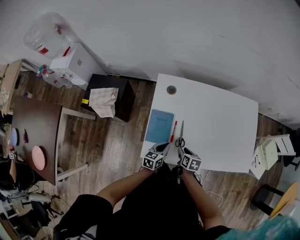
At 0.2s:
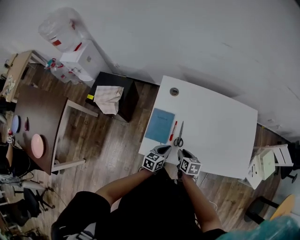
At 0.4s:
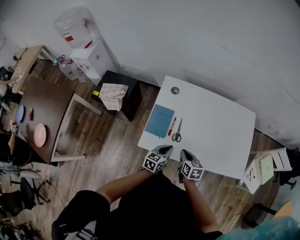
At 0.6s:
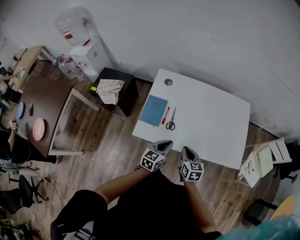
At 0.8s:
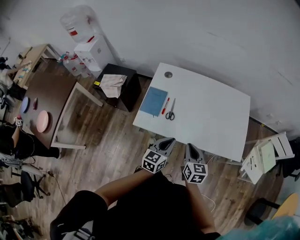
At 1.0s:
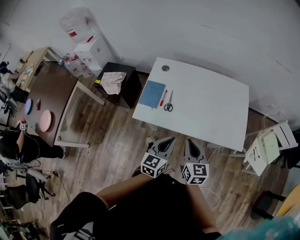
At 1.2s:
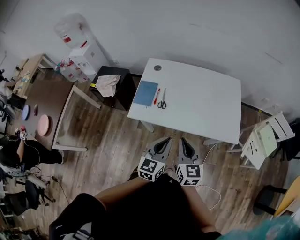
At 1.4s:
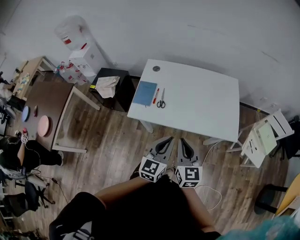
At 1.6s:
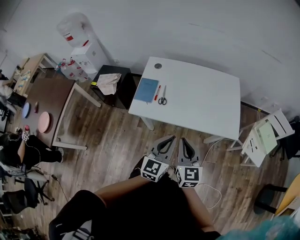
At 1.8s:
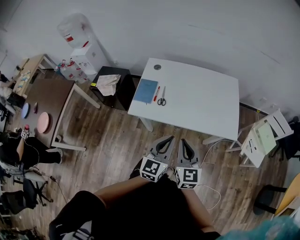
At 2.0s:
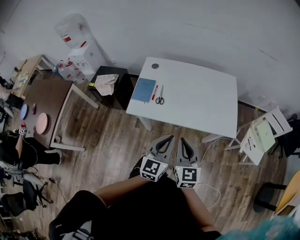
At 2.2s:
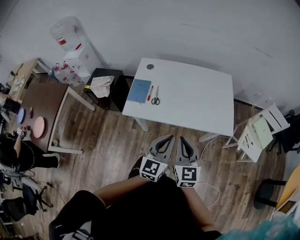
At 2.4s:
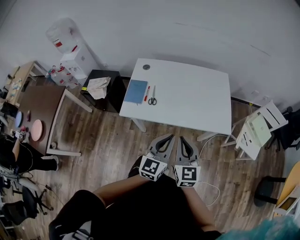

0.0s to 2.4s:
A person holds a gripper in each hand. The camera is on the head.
0.0s to 1.2s: Both grippers move upward, backward and to the right, some 40 cm. The left gripper rotates approximately 30 degrees, while the right gripper tilts its fingers some 40 degrees upward, and closes up.
1.2s to 2.4s: The right gripper shifts by approximately 5 cm; the left gripper travels to the right by some 5 cm.

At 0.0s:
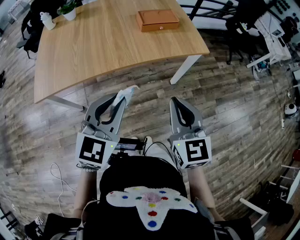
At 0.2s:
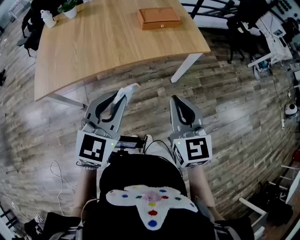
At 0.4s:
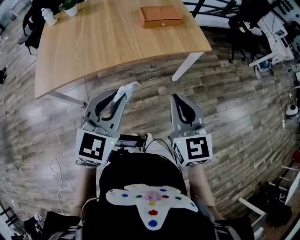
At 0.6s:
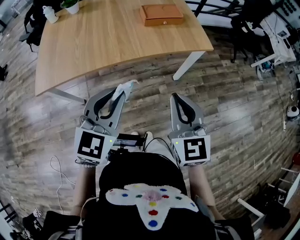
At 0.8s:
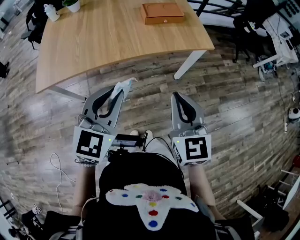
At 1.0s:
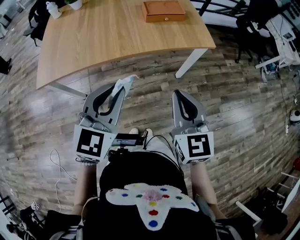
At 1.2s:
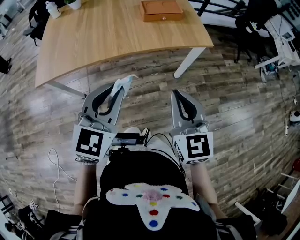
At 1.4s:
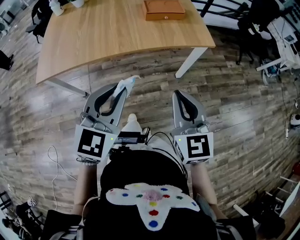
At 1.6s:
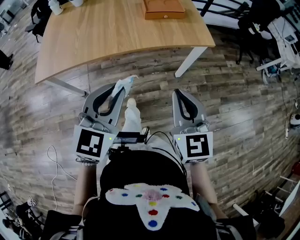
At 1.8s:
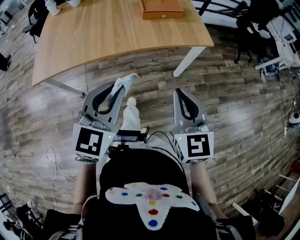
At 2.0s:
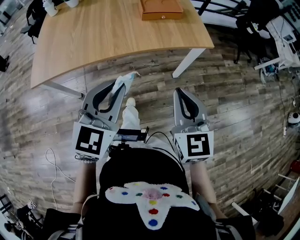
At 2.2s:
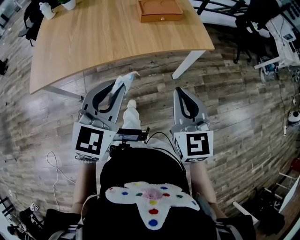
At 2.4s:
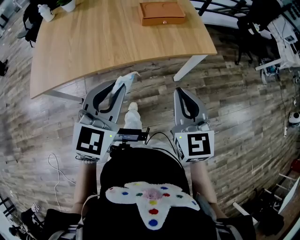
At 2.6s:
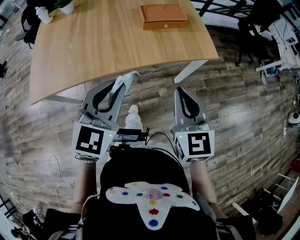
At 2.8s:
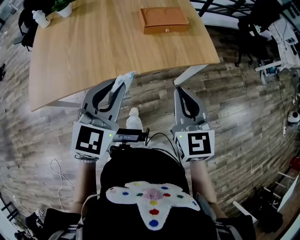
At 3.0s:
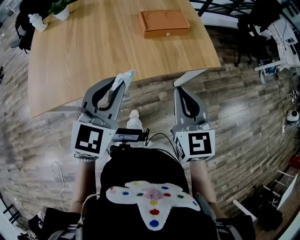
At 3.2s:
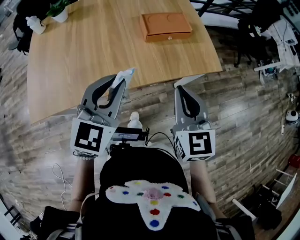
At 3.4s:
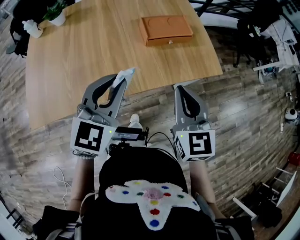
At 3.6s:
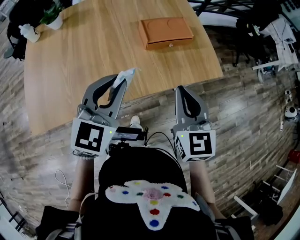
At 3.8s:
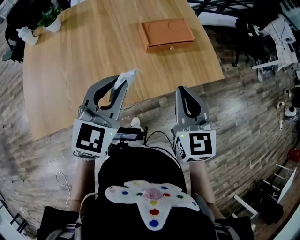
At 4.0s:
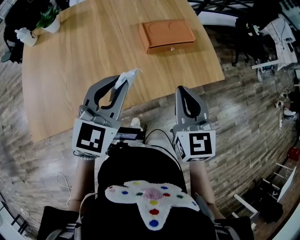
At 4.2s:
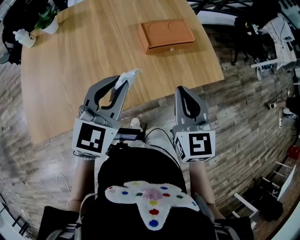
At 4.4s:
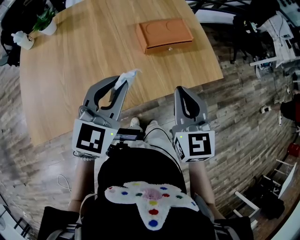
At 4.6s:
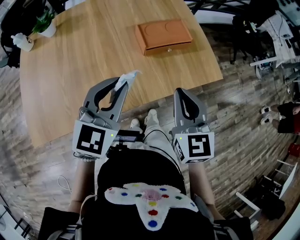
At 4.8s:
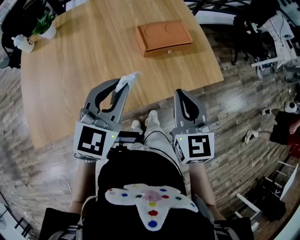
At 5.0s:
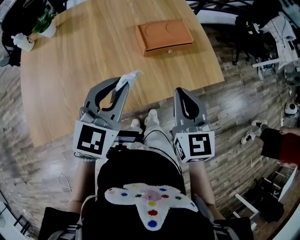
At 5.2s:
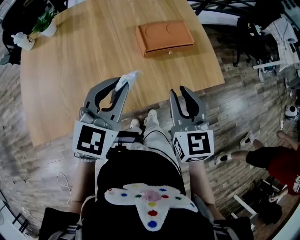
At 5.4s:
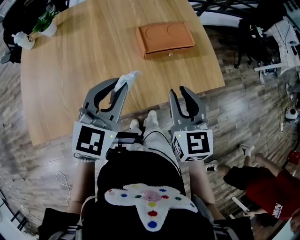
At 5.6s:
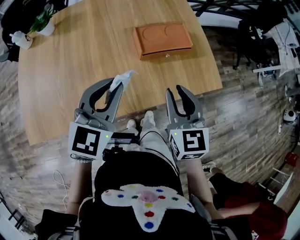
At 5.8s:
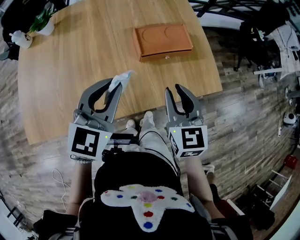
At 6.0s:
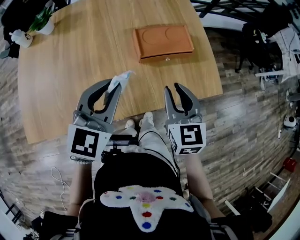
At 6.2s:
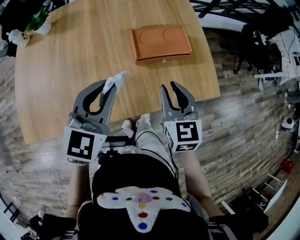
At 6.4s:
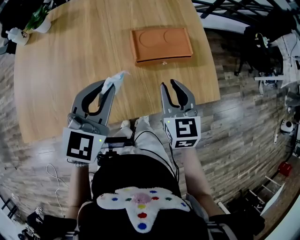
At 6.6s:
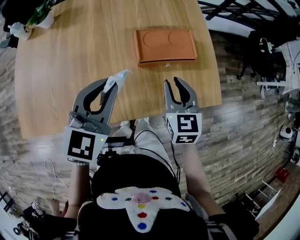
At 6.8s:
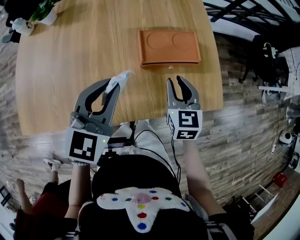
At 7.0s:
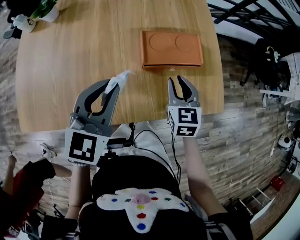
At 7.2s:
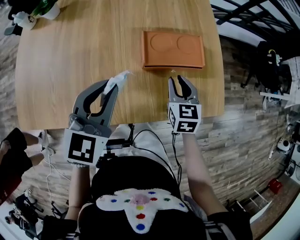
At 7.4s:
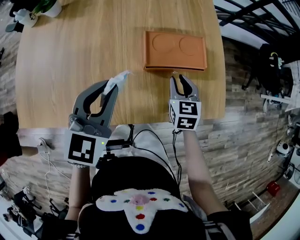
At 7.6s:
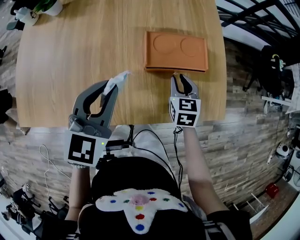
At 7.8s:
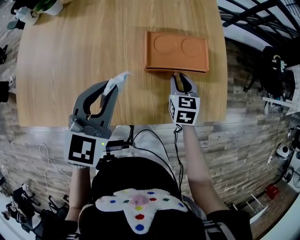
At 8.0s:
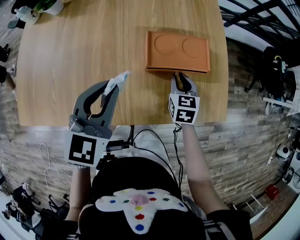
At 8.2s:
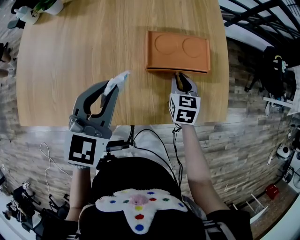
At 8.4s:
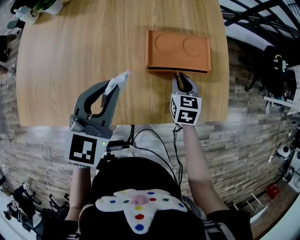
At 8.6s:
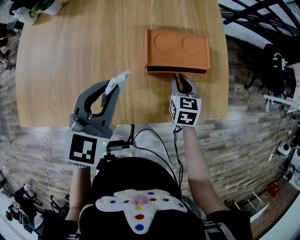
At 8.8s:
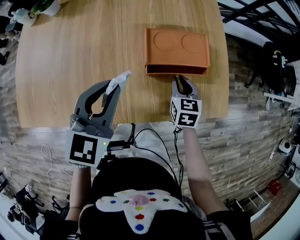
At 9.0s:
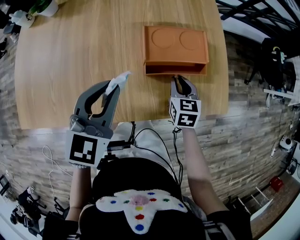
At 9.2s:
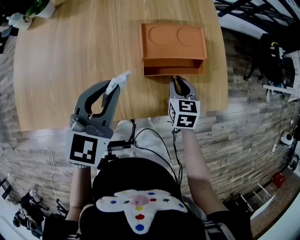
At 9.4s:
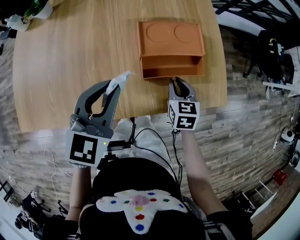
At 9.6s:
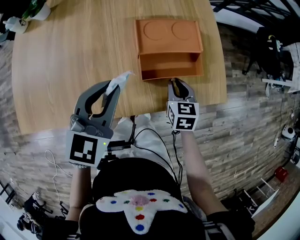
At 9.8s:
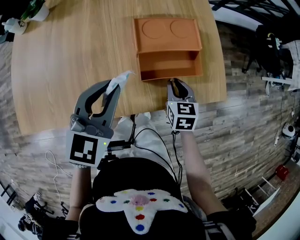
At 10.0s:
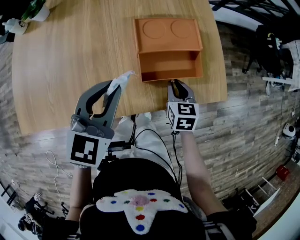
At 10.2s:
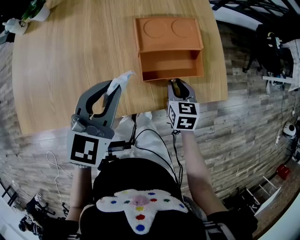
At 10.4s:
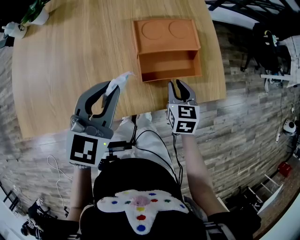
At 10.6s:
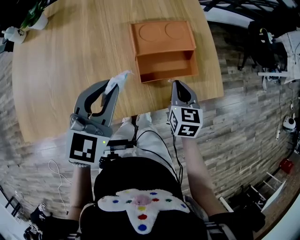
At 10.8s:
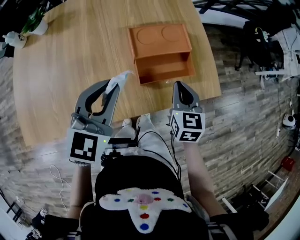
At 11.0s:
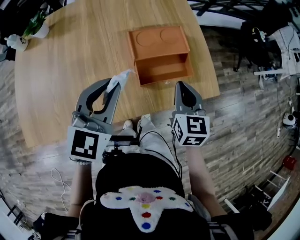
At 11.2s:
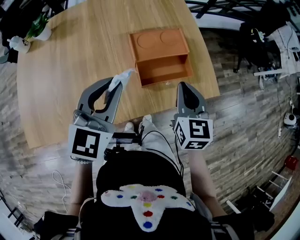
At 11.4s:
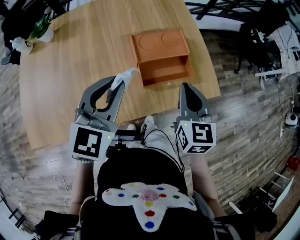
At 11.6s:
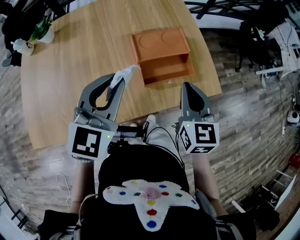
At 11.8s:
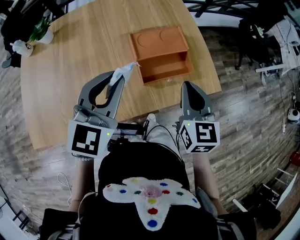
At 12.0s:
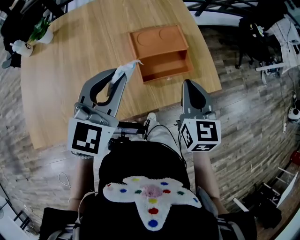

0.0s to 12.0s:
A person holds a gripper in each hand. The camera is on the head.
0.0s to 1.6s: The grippers both shift to the right by some 5 cm.
1.6s to 3.0s: Both grippers travel together forward, roughly 20 cm.
3.0s to 4.4s: The right gripper shifts some 15 cm forward and to the left; the left gripper moves forward, about 15 cm.
4.4s to 6.0s: The left gripper goes about 5 cm forward. Meanwhile the right gripper is displaced forward and downward by some 10 cm, and opens up.
6.0s to 7.6s: The right gripper shifts about 20 cm downward and forward. The left gripper goes about 5 cm forward.
7.6s to 9.0s: The grippers stay close to where they were, moving slightly.
9.0s to 10.4s: The right gripper moves backward, approximately 5 cm.
10.4s to 12.0s: The right gripper goes approximately 20 cm upward, turns by about 20 degrees, and closes its fingers. The left gripper travels upward by about 10 cm.

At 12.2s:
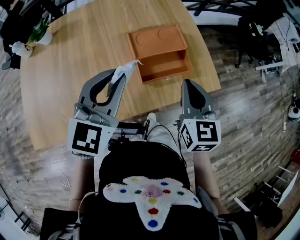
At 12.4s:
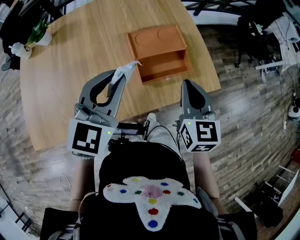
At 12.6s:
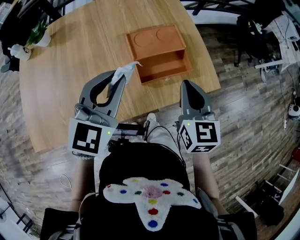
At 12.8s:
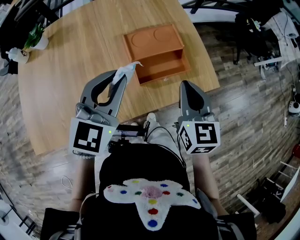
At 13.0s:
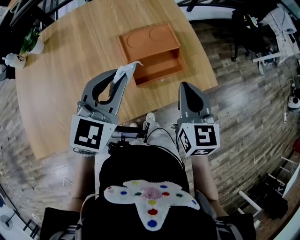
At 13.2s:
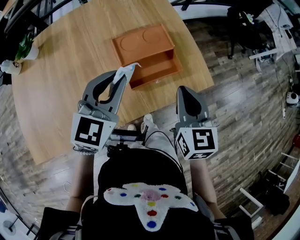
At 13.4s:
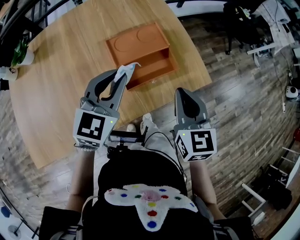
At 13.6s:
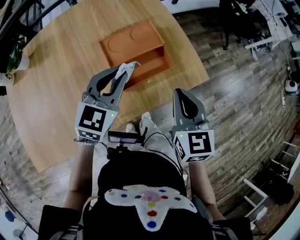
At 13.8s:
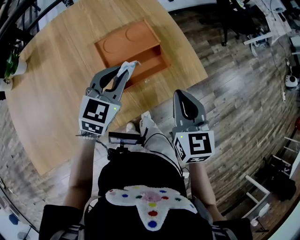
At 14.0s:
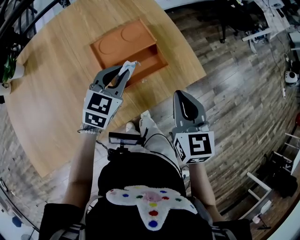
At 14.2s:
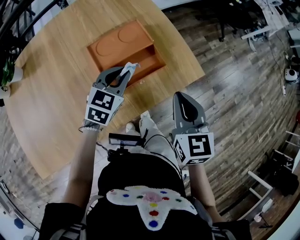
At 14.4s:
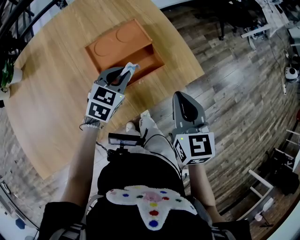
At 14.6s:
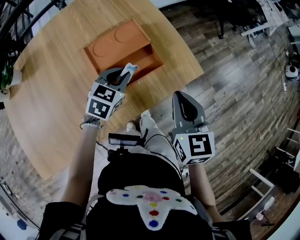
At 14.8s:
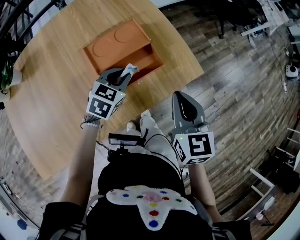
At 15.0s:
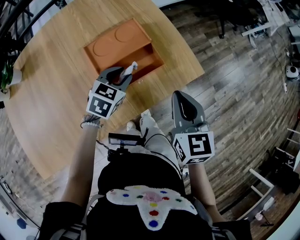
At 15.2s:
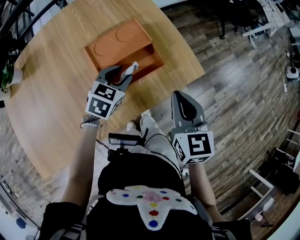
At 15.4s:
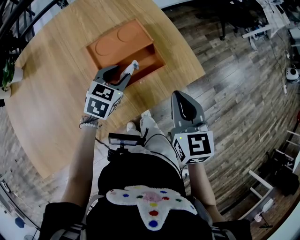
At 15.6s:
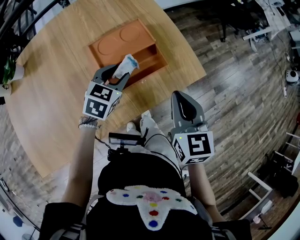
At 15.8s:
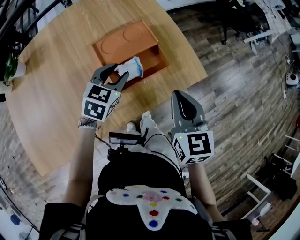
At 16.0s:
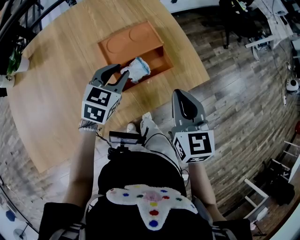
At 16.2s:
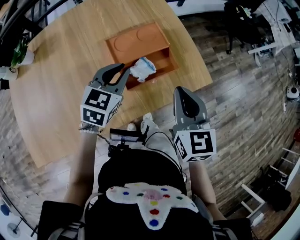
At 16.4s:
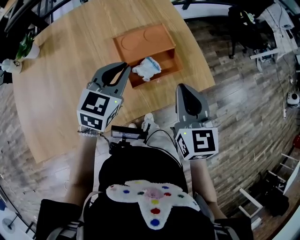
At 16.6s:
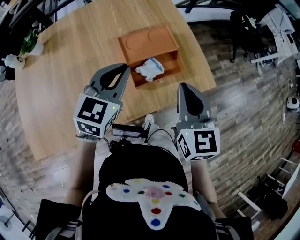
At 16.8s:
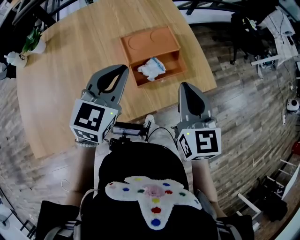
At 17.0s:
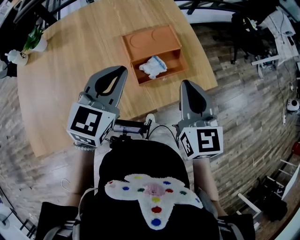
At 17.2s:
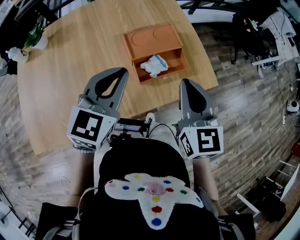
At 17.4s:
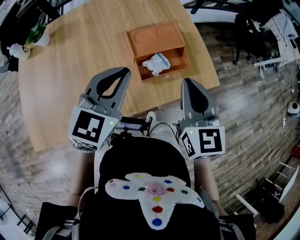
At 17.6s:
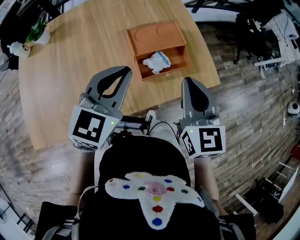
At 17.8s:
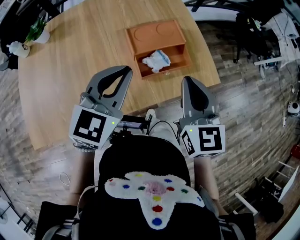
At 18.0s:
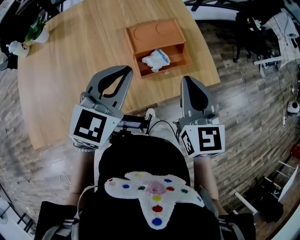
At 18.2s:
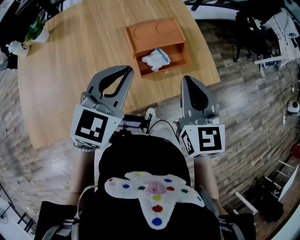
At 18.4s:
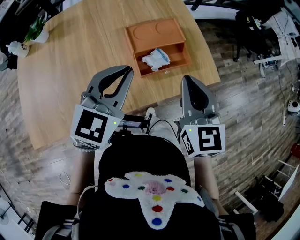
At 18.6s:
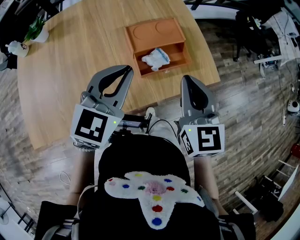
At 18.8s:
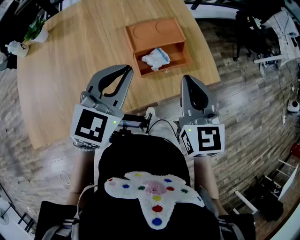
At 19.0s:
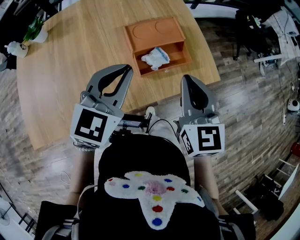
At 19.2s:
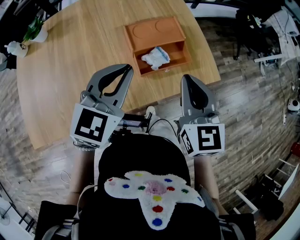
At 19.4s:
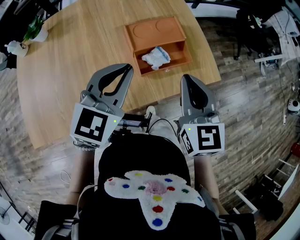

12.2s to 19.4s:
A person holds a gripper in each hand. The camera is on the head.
12.2s to 13.6s: The right gripper shifts by some 5 cm; the left gripper moves downward, forward and to the right, roughly 15 cm.
13.6s to 15.0s: The left gripper moves downward, some 15 cm, and turns by about 30 degrees.
15.0s to 16.6s: The left gripper goes about 20 cm upward and to the left, swivels roughly 30 degrees, and closes up. Meanwhile the right gripper goes roughly 10 cm to the left and upward.
16.6s to 18.0s: The left gripper shifts roughly 5 cm backward.
18.0s to 19.4s: Both grippers stay put.

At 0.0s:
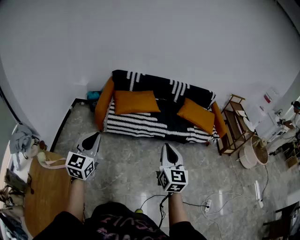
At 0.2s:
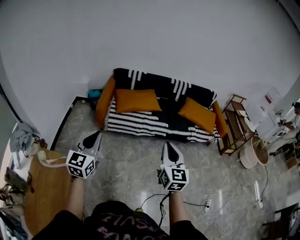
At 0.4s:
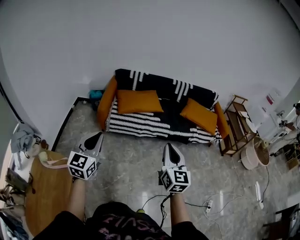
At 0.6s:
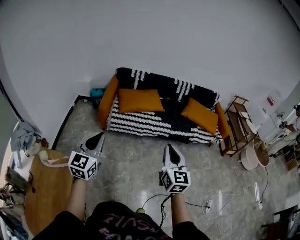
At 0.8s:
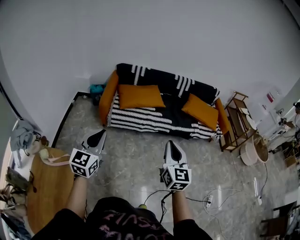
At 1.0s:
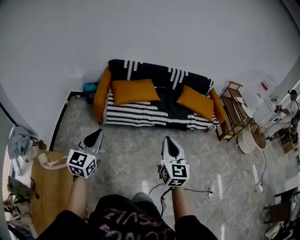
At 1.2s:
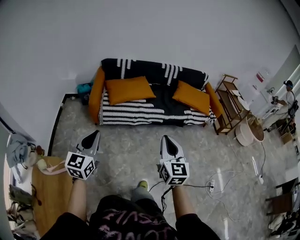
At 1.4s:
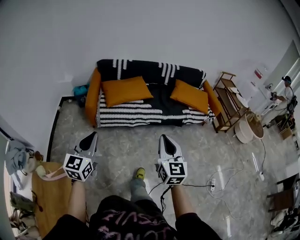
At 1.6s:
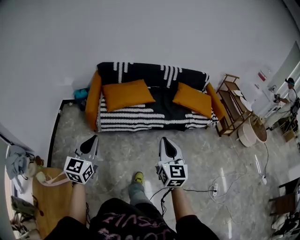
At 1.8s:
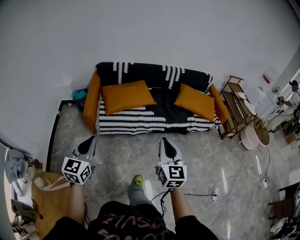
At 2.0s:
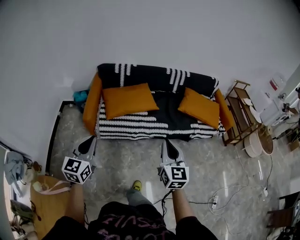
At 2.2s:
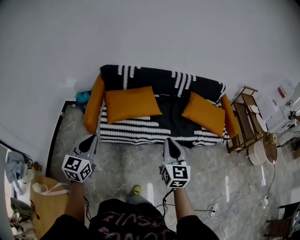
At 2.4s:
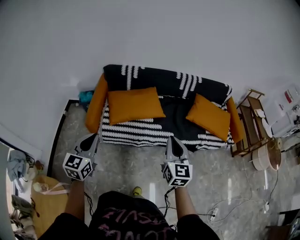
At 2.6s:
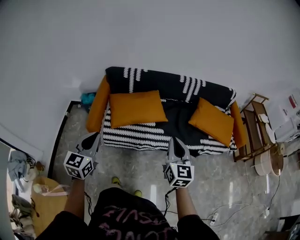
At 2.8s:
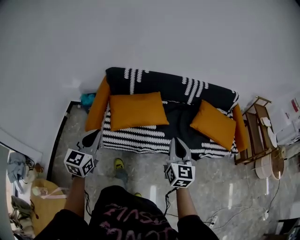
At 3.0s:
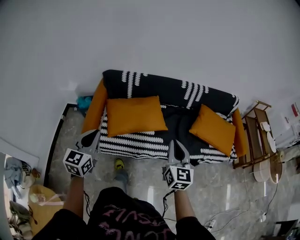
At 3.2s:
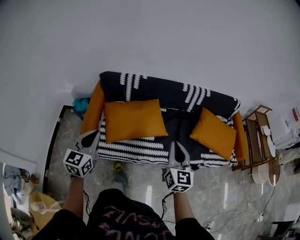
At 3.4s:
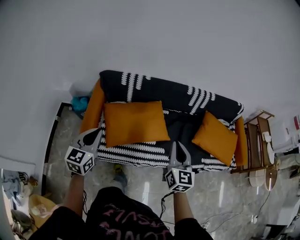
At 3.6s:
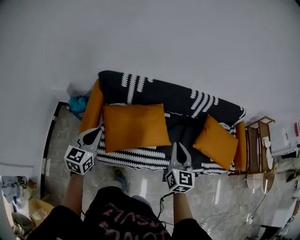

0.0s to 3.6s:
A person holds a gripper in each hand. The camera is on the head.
0.0s to 1.8s: Both grippers move forward, about 15 cm.
1.8s to 3.6s: The two grippers travel together, forward, roughly 60 cm.
